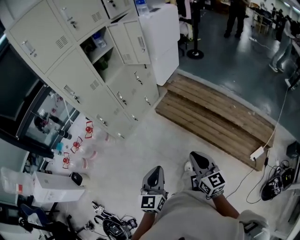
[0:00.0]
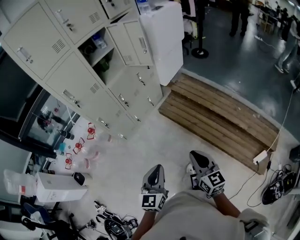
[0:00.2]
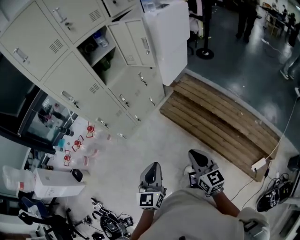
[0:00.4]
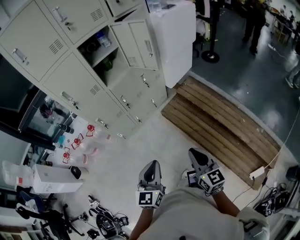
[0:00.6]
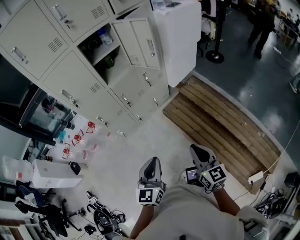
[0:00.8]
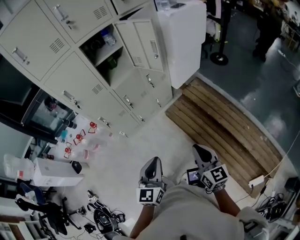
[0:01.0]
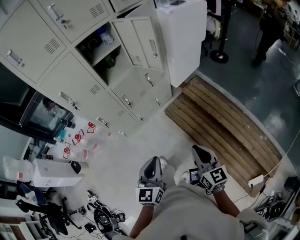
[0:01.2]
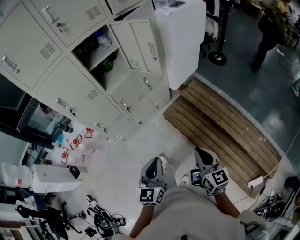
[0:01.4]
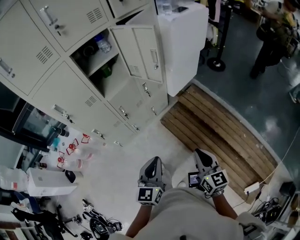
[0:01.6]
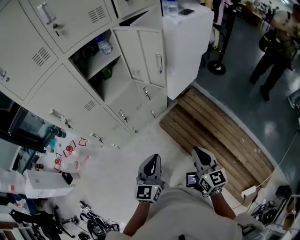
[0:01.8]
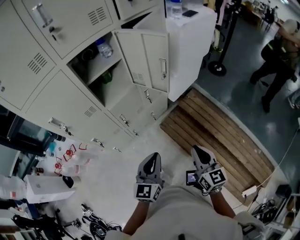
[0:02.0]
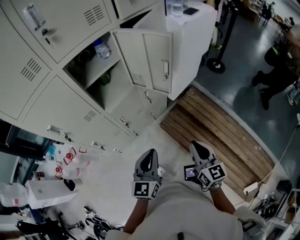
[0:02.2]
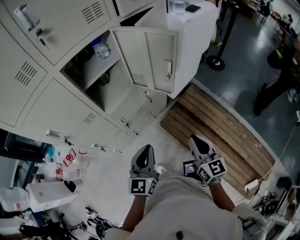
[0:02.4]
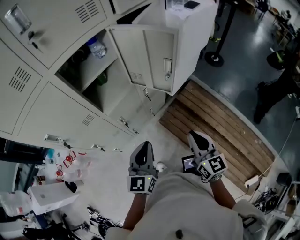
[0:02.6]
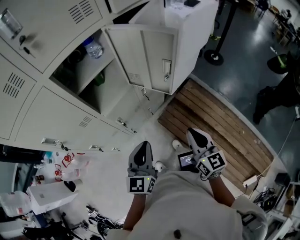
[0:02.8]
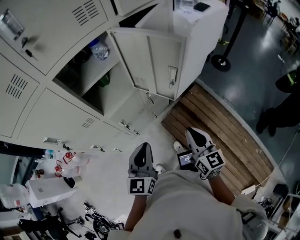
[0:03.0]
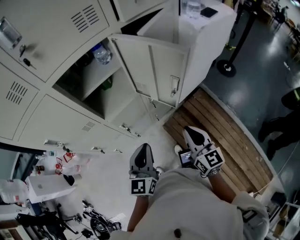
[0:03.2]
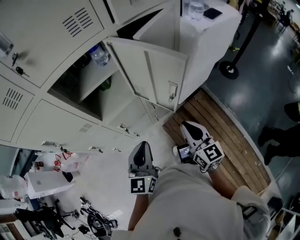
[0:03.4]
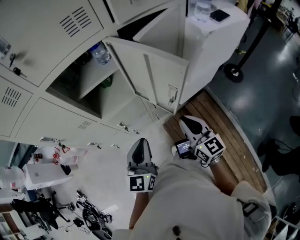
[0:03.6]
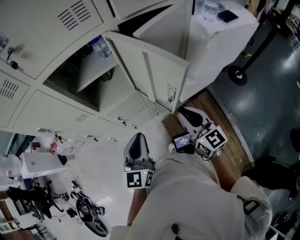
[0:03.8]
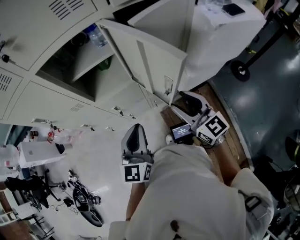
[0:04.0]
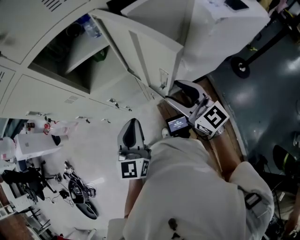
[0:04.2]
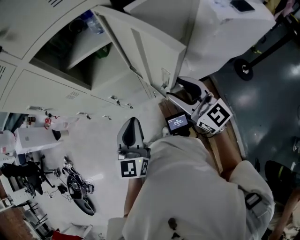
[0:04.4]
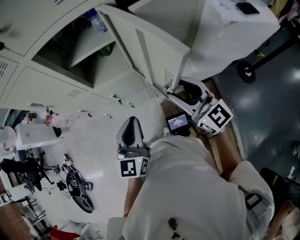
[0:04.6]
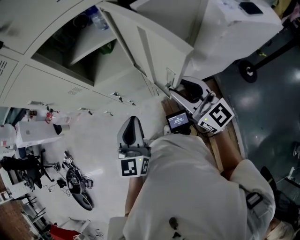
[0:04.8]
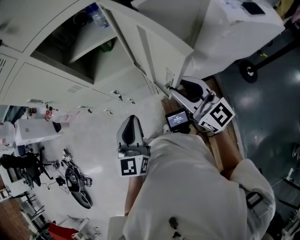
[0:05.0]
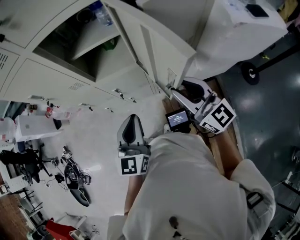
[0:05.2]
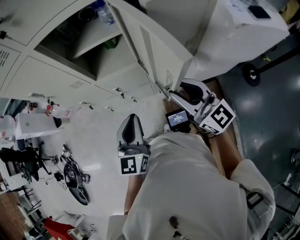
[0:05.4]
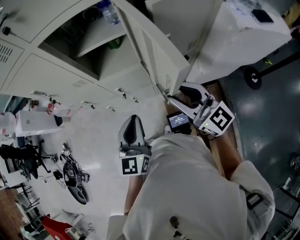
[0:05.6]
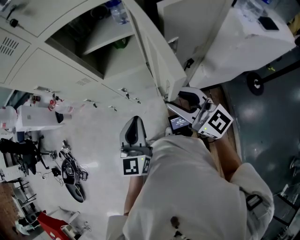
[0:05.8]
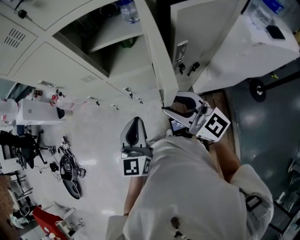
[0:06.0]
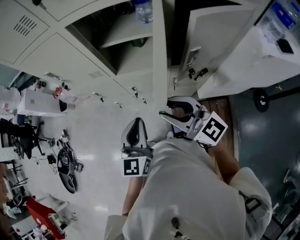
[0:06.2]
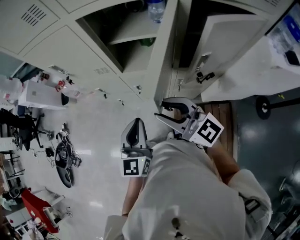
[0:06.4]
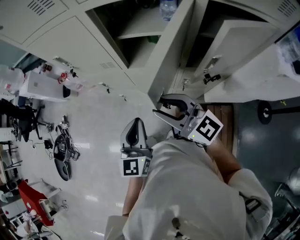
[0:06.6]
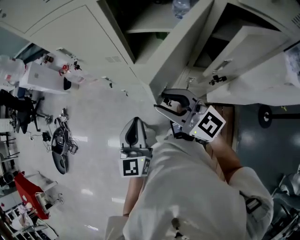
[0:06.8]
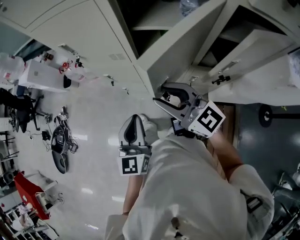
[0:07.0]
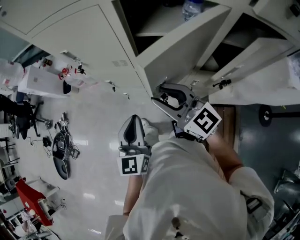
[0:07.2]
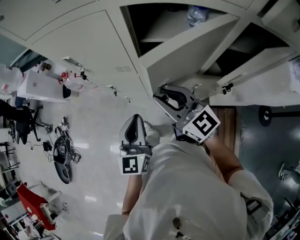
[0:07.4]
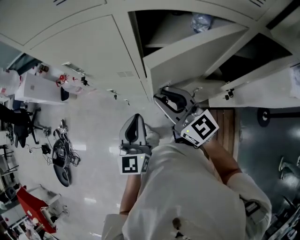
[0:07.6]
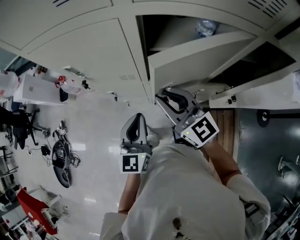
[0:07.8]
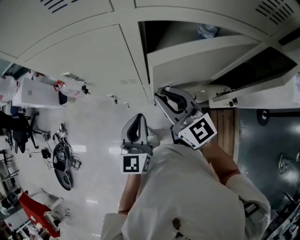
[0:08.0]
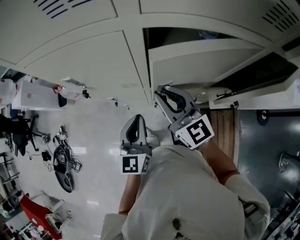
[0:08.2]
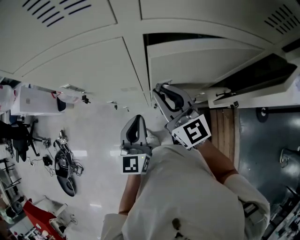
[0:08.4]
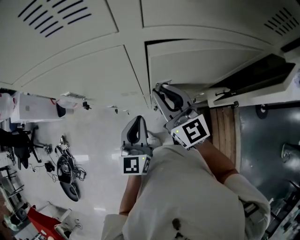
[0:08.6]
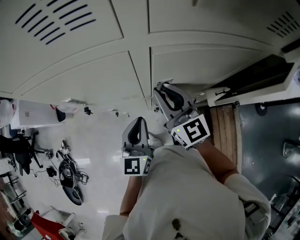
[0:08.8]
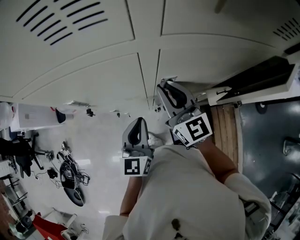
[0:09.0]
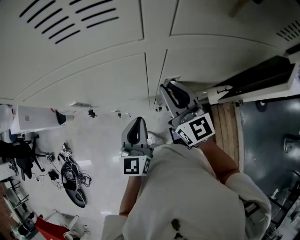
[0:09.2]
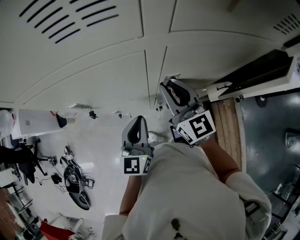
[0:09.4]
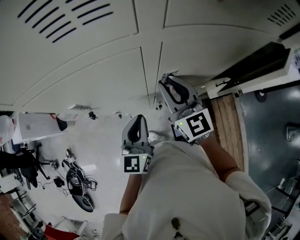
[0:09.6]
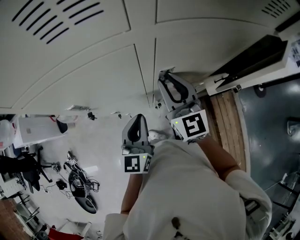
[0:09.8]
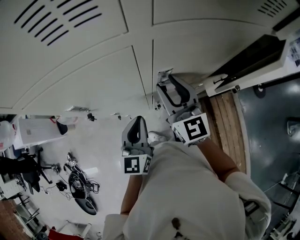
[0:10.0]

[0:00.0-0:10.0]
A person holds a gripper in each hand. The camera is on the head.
0:00.0 to 0:01.4: Both grippers travel together forward, approximately 25 cm.
0:01.4 to 0:02.8: The two grippers go about 30 cm forward.
0:02.8 to 0:04.2: The right gripper shifts by roughly 20 cm, swivels approximately 50 degrees, and opens. The left gripper changes place by about 15 cm, and turns by some 30 degrees.
0:04.2 to 0:05.8: The right gripper goes about 5 cm to the left, and swivels some 20 degrees.
0:05.8 to 0:07.2: Both grippers travel together to the left and forward, approximately 20 cm.
0:07.2 to 0:08.6: The two grippers go some 15 cm forward. The right gripper rotates about 30 degrees.
0:08.6 to 0:10.0: The right gripper opens up.

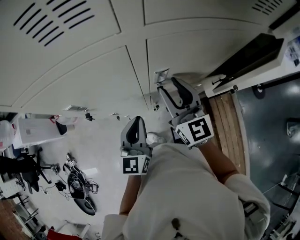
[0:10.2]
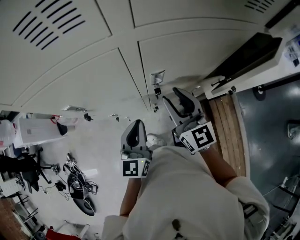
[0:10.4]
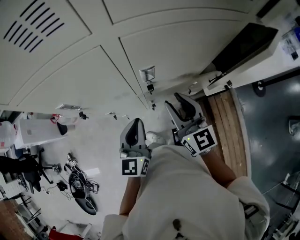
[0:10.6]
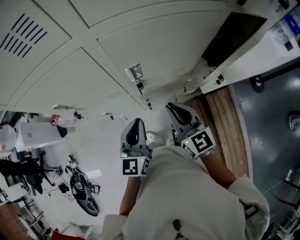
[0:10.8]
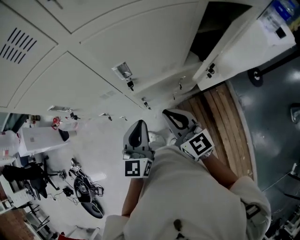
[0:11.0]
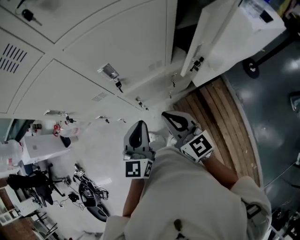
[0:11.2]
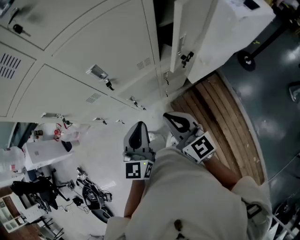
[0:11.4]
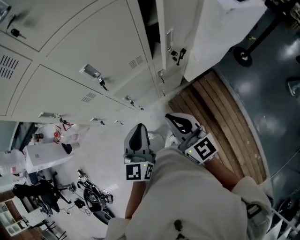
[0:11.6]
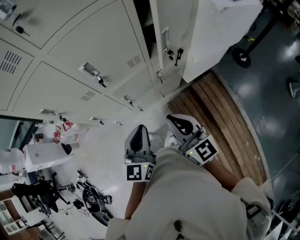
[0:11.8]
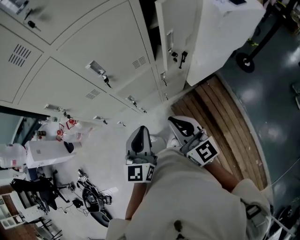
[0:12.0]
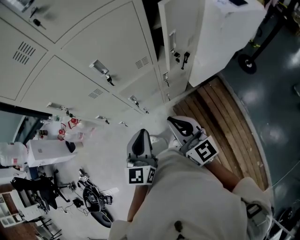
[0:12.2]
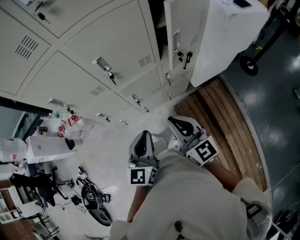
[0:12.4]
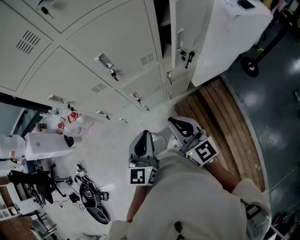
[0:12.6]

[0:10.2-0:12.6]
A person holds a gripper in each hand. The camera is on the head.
0:10.2 to 0:11.4: The left gripper is displaced to the right and backward by some 20 cm, while the right gripper shifts approximately 25 cm backward and to the right, and closes up.
0:11.4 to 0:12.6: The two grippers go about 10 cm backward.

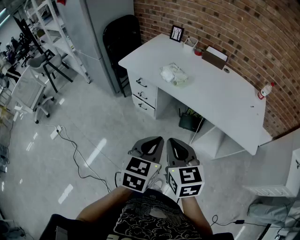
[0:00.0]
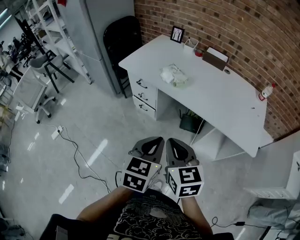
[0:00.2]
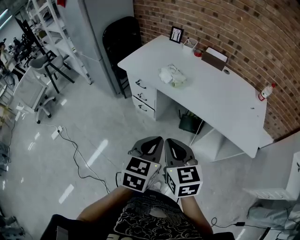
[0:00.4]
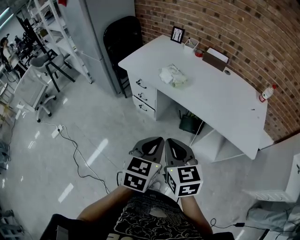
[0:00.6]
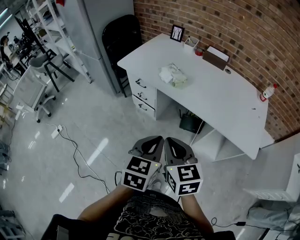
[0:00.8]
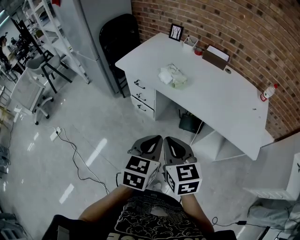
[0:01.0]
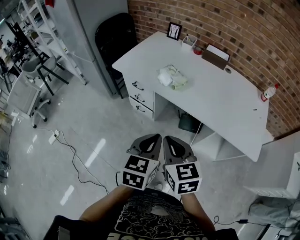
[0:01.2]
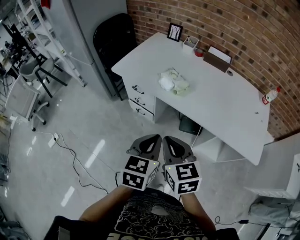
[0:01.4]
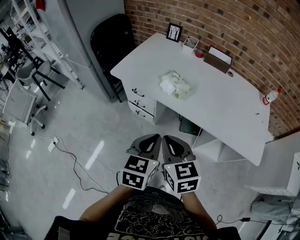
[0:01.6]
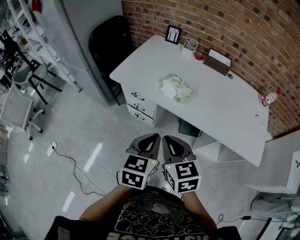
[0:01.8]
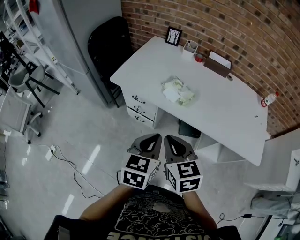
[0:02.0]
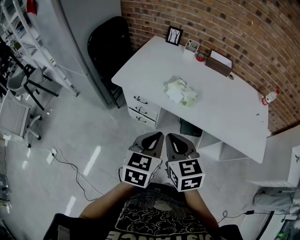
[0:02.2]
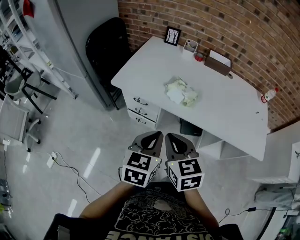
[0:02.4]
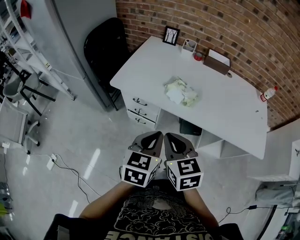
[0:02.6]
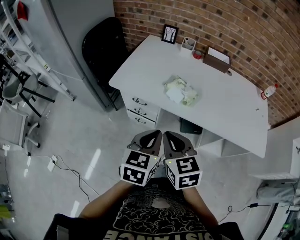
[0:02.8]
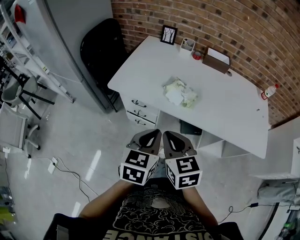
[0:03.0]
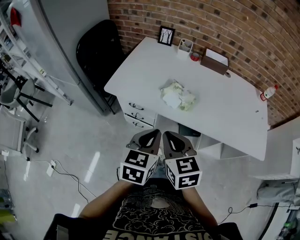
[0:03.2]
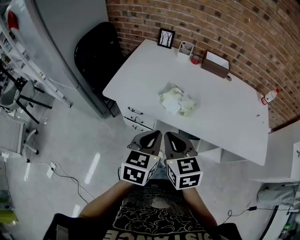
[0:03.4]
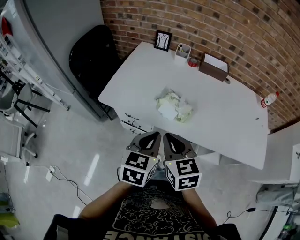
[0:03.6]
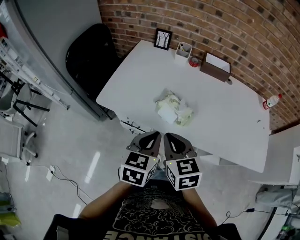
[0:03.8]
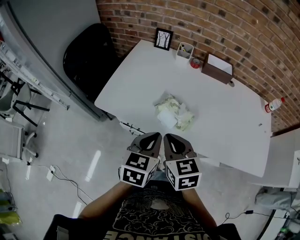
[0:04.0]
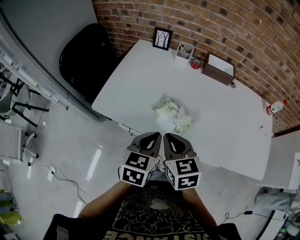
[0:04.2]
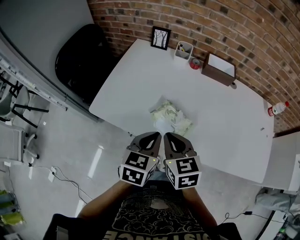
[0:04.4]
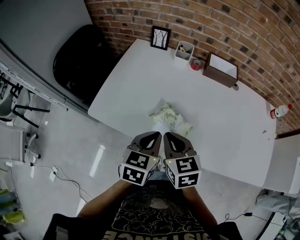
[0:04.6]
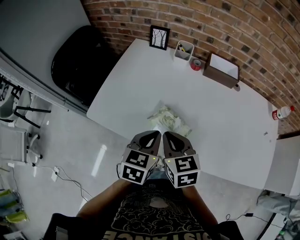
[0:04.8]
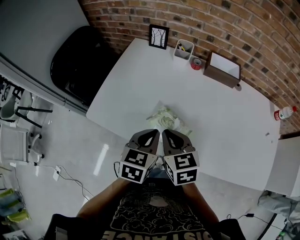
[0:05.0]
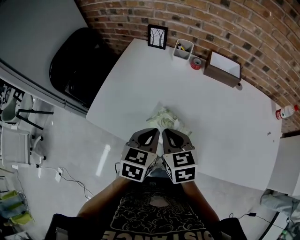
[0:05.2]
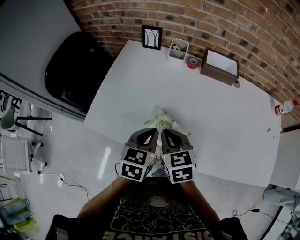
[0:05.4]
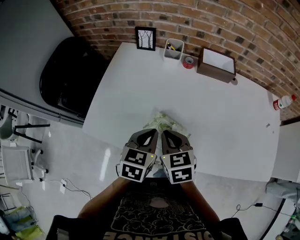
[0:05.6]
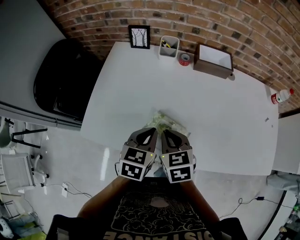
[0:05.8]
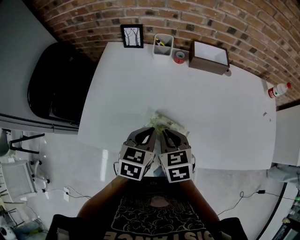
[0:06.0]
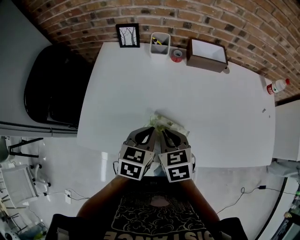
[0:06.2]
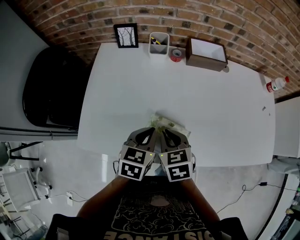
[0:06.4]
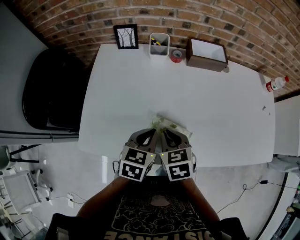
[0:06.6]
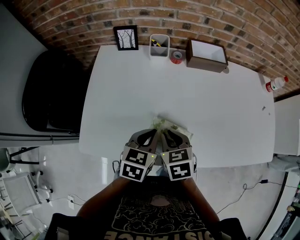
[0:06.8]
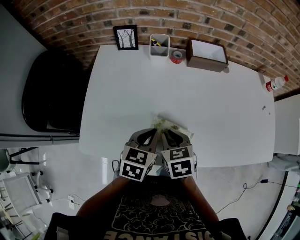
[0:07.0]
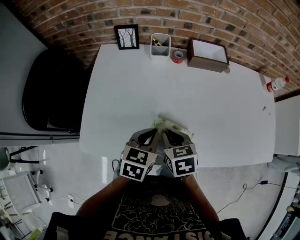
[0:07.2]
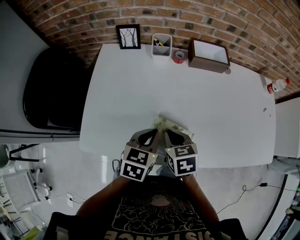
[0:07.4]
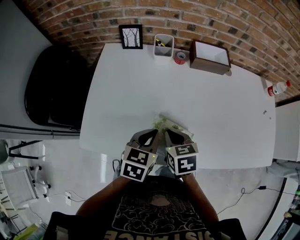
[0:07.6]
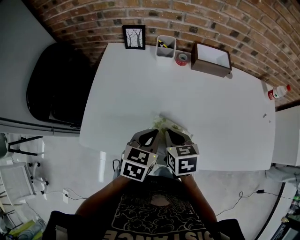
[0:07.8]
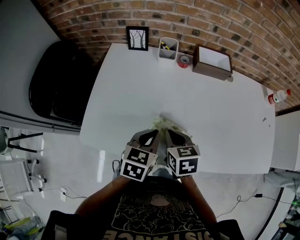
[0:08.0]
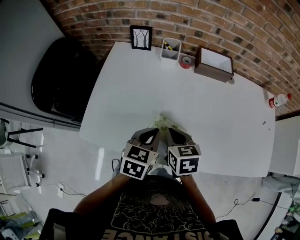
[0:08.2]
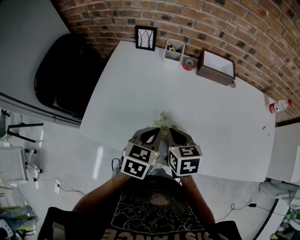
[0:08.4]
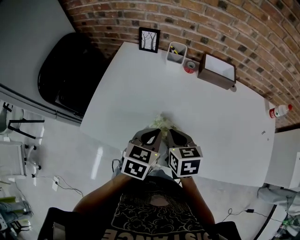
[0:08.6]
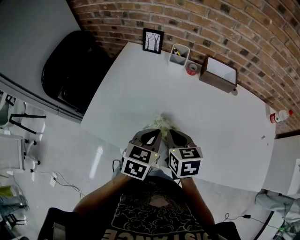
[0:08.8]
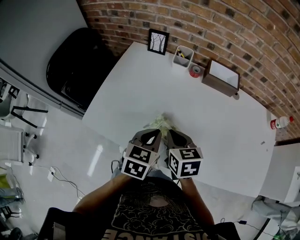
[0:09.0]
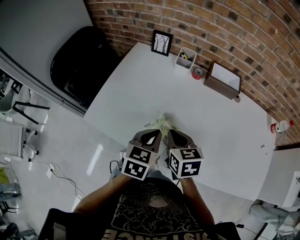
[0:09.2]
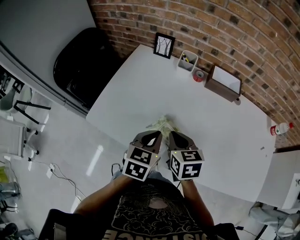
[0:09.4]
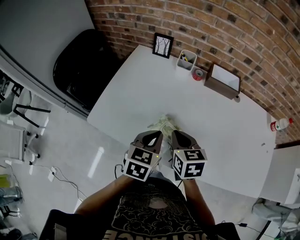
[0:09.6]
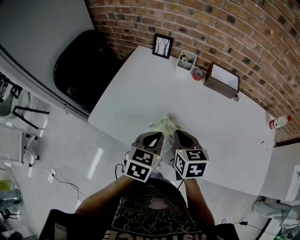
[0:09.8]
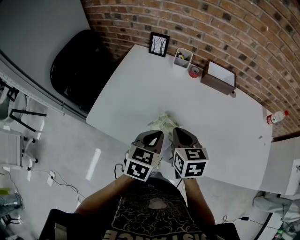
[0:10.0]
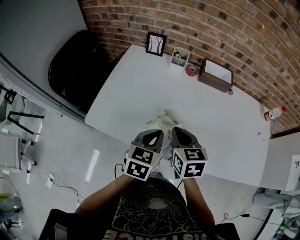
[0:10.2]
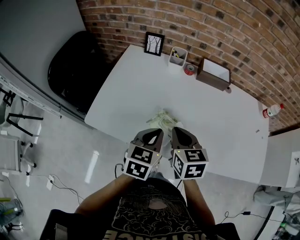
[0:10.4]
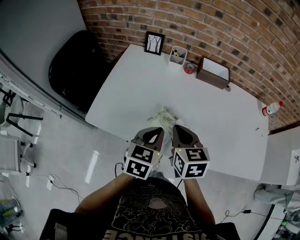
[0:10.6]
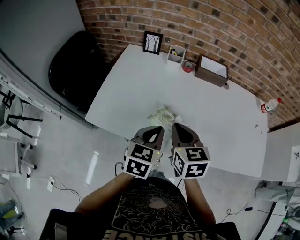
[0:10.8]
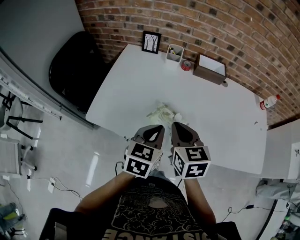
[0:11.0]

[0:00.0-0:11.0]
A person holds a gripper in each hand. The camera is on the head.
0:00.0 to 0:01.6: Both grippers travel together forward, about 15 cm.
0:01.6 to 0:03.2: The grippers both shift forward and to the left by roughly 15 cm.
0:03.2 to 0:04.8: Both grippers travel together forward, about 20 cm.
0:04.8 to 0:06.2: The right gripper shifts some 10 cm forward and downward. The left gripper shifts some 10 cm forward.
0:06.2 to 0:07.8: The grippers move only a little.
0:07.8 to 0:09.4: The right gripper heads upward, covering about 5 cm.
0:09.4 to 0:11.0: The left gripper heads backward, covering approximately 5 cm, while the right gripper is displaced upward and backward by approximately 10 cm.
